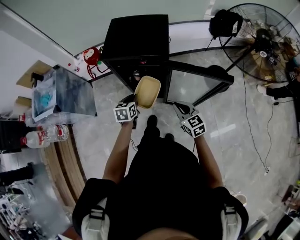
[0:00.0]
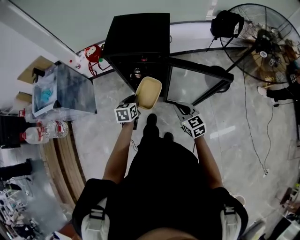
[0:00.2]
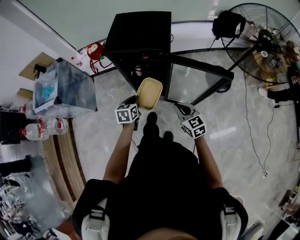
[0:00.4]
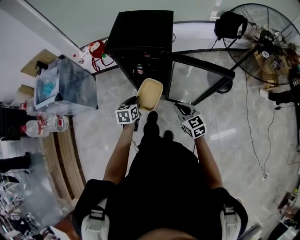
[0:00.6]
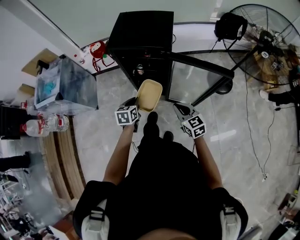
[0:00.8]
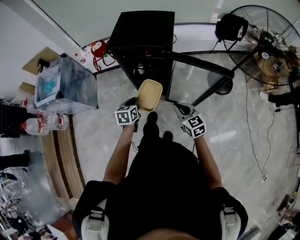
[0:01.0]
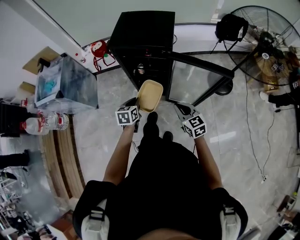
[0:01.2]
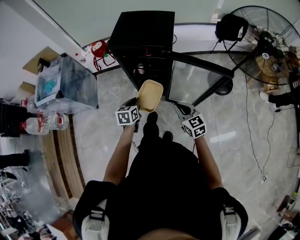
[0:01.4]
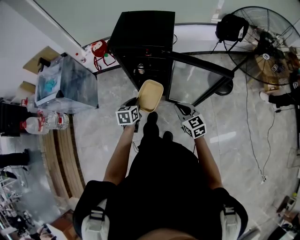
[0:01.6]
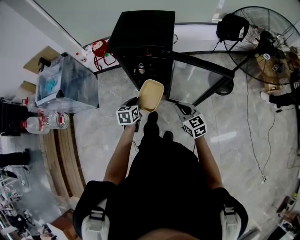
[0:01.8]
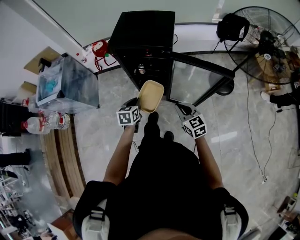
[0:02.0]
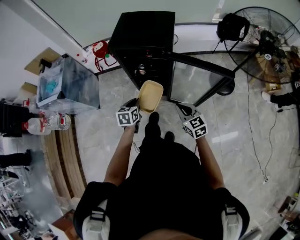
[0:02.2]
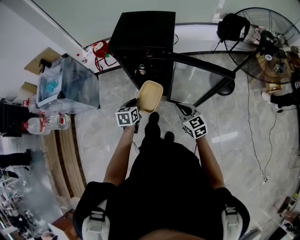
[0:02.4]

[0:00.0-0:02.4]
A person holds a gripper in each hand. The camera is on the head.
0:00.0 to 0:01.2: Both grippers travel together backward, about 10 cm.
0:01.2 to 0:02.4: Neither gripper changes place.

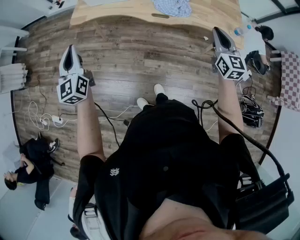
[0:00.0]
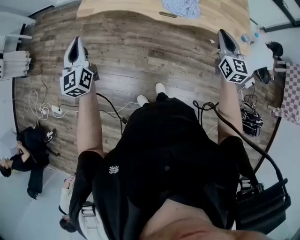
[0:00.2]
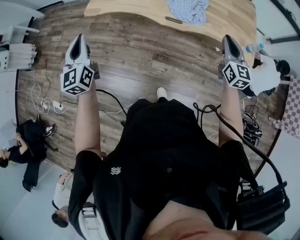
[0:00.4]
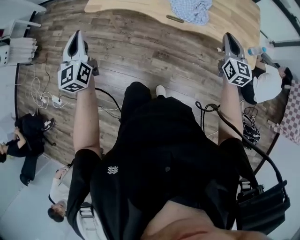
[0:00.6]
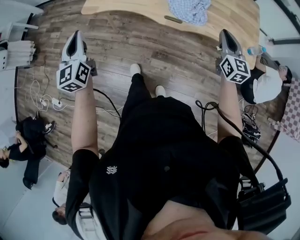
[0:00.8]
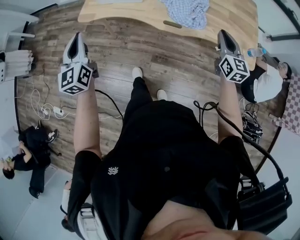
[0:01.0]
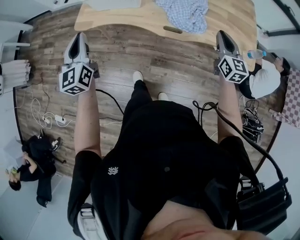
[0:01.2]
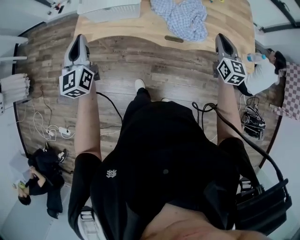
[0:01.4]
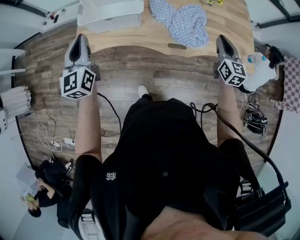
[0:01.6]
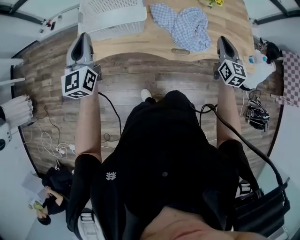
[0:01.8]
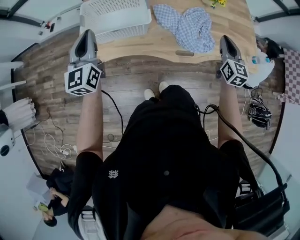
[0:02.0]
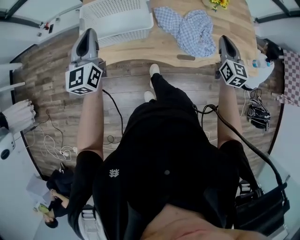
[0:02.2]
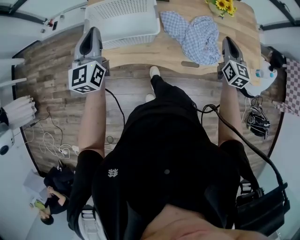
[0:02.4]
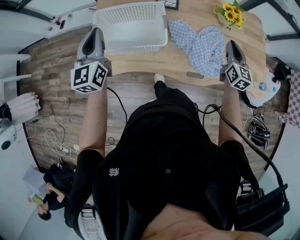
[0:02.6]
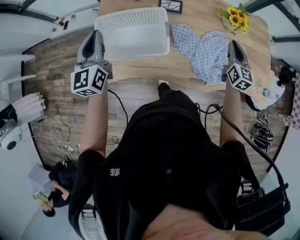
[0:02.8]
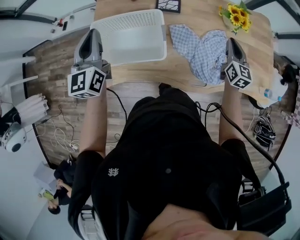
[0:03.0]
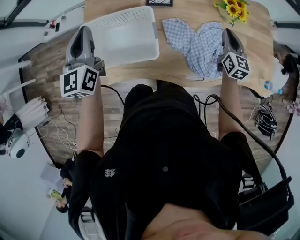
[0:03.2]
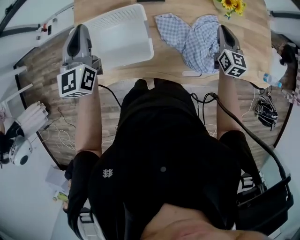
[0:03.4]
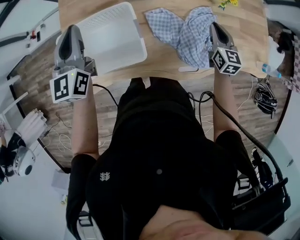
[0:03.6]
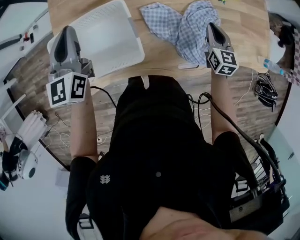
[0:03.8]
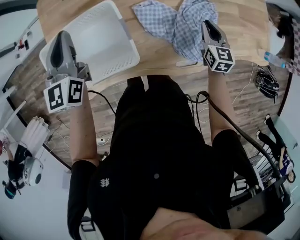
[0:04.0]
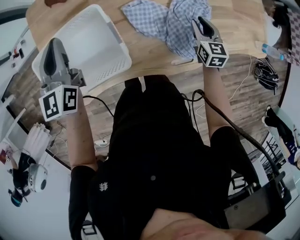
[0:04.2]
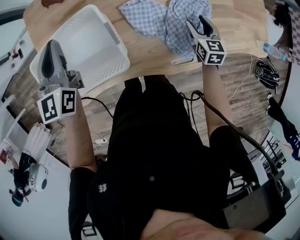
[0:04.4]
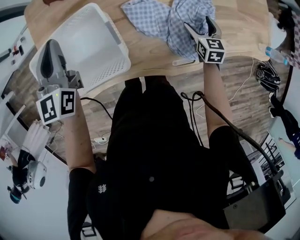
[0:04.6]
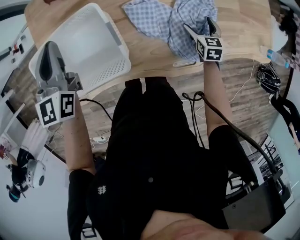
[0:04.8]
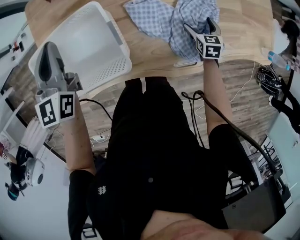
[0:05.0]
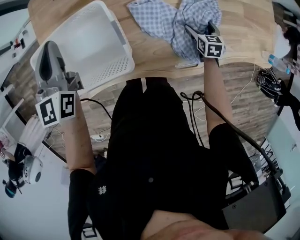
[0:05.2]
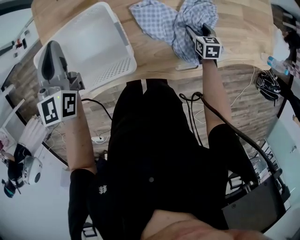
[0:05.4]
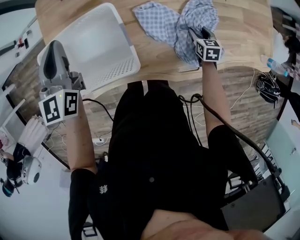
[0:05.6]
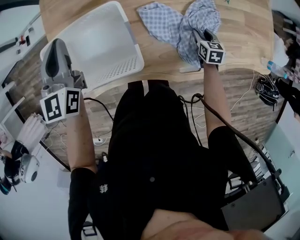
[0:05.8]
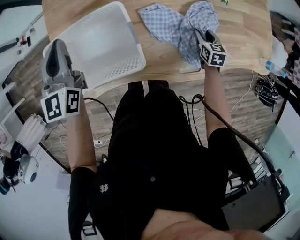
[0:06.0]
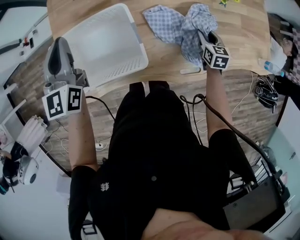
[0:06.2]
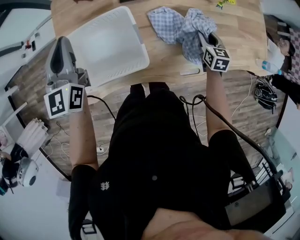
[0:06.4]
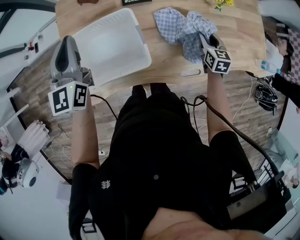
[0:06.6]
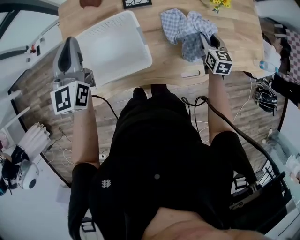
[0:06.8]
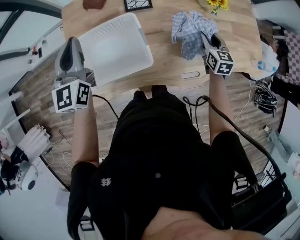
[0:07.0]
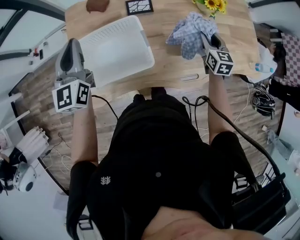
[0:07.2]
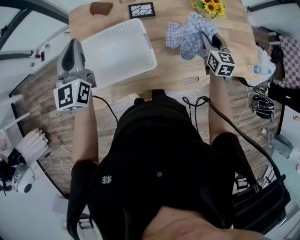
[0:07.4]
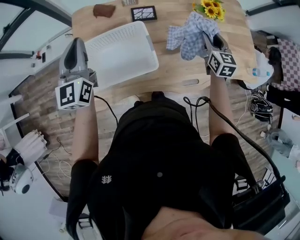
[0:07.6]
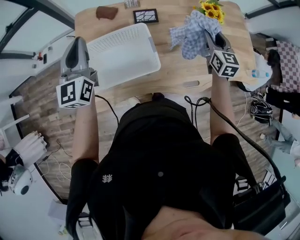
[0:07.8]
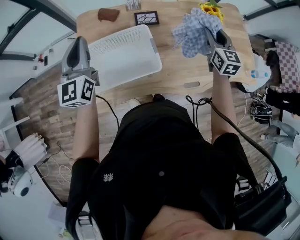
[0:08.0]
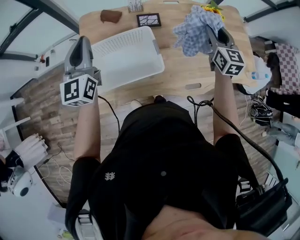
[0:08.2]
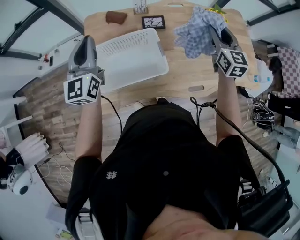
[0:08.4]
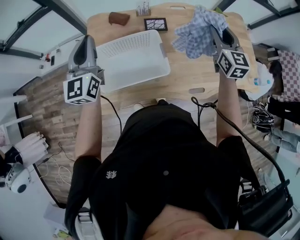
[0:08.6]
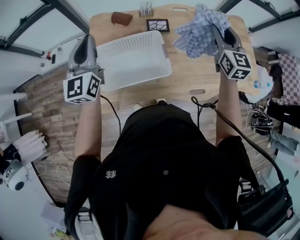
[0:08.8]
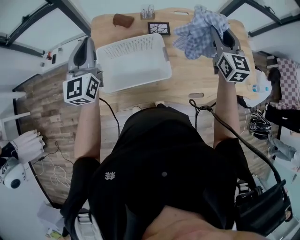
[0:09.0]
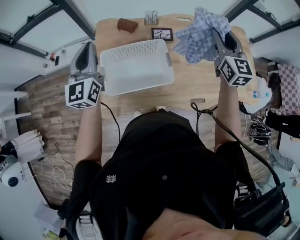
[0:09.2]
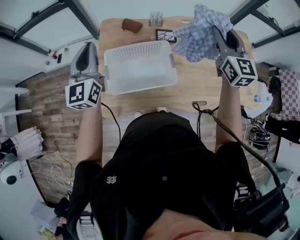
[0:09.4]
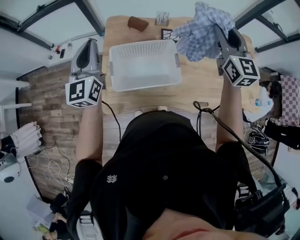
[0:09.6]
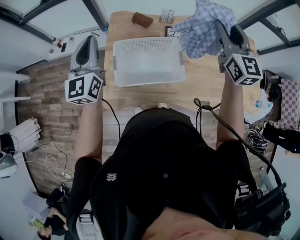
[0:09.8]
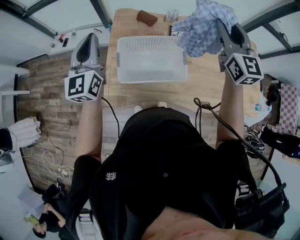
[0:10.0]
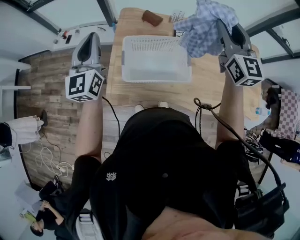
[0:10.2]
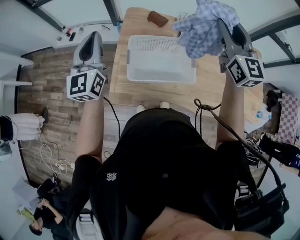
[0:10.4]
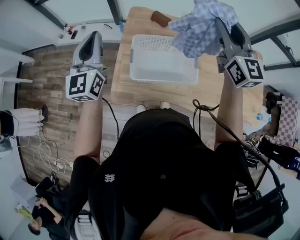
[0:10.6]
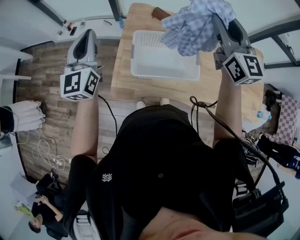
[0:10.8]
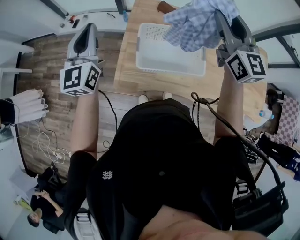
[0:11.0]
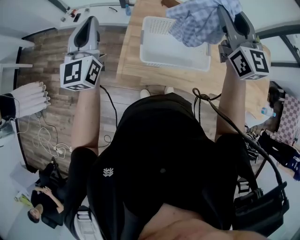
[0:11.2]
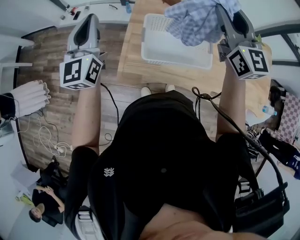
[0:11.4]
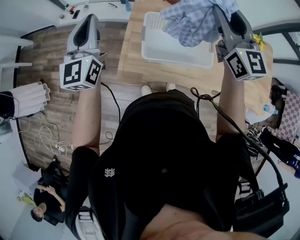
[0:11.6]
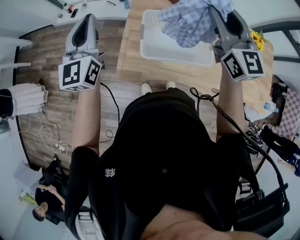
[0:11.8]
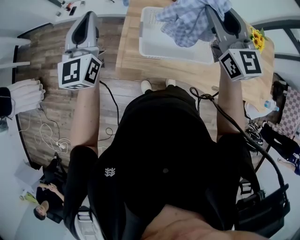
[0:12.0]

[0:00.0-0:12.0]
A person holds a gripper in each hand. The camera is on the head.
0:00.0 to 0:01.6: Both grippers move forward, approximately 30 cm.
0:01.6 to 0:03.0: Both grippers travel together forward, approximately 25 cm.
0:03.0 to 0:04.4: The left gripper heads downward, forward and to the right, covering roughly 20 cm. The right gripper heads downward, covering some 20 cm, rotates approximately 20 degrees, and opens up.
0:04.4 to 0:06.0: The left gripper changes place by roughly 5 cm; the right gripper opens and closes again.
0:06.0 to 0:07.6: The right gripper heads upward, covering approximately 25 cm, and changes its angle by some 30 degrees. The left gripper moves upward, approximately 10 cm.
0:07.6 to 0:09.0: The left gripper is displaced to the left by approximately 5 cm, while the right gripper shifts about 20 cm upward and to the left.
0:09.0 to 0:10.4: The left gripper is displaced to the left and backward by roughly 15 cm, while the right gripper travels to the left and upward by about 20 cm, and swivels some 20 degrees.
0:10.4 to 0:12.0: The left gripper heads to the left, covering about 5 cm; the right gripper is displaced to the left and downward by approximately 15 cm.

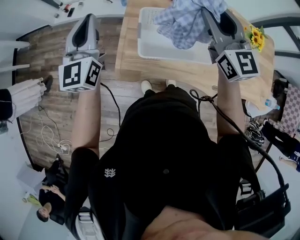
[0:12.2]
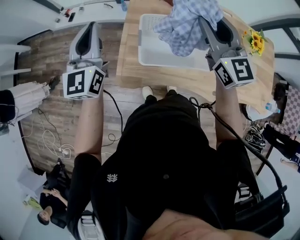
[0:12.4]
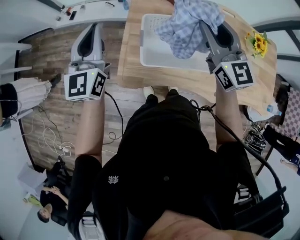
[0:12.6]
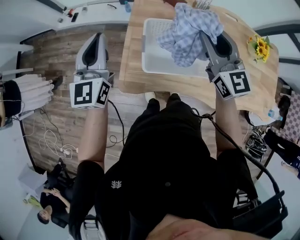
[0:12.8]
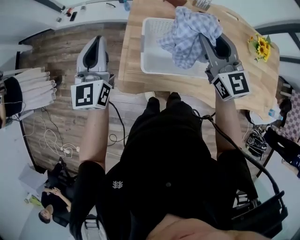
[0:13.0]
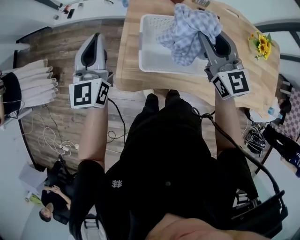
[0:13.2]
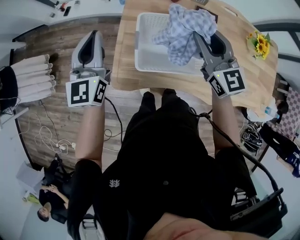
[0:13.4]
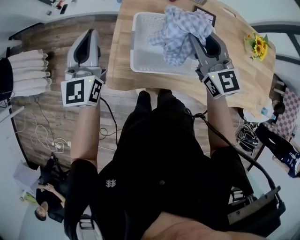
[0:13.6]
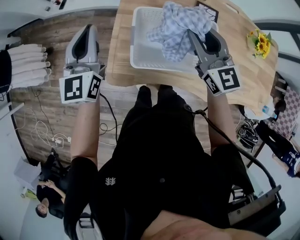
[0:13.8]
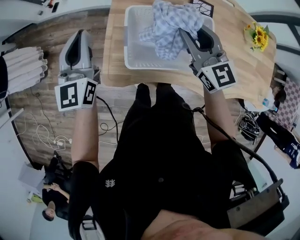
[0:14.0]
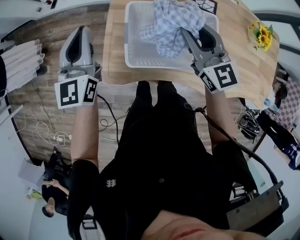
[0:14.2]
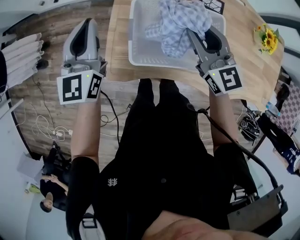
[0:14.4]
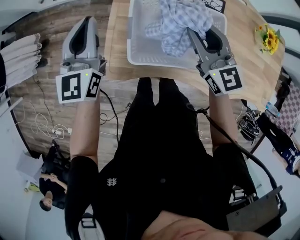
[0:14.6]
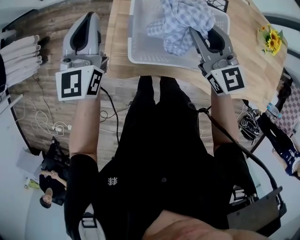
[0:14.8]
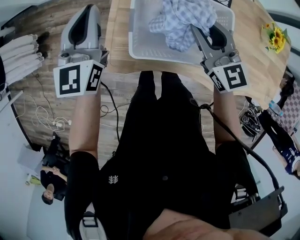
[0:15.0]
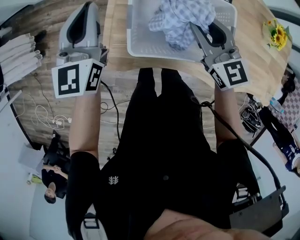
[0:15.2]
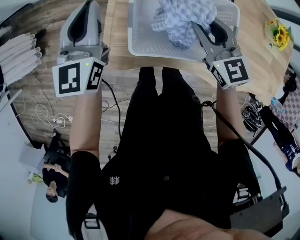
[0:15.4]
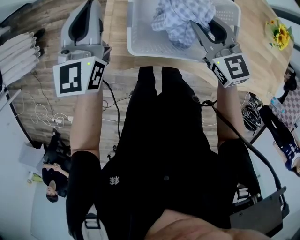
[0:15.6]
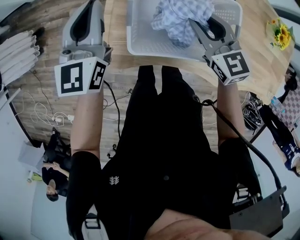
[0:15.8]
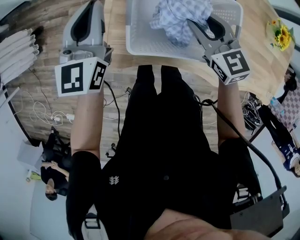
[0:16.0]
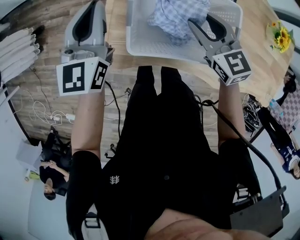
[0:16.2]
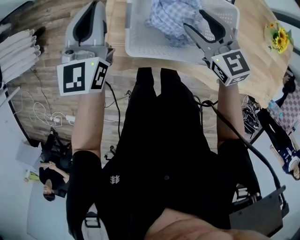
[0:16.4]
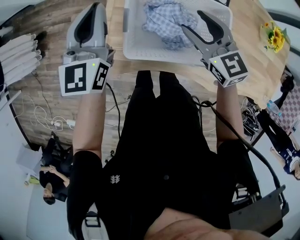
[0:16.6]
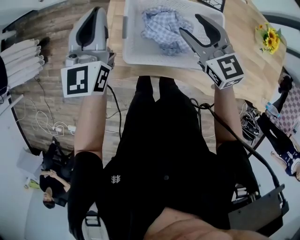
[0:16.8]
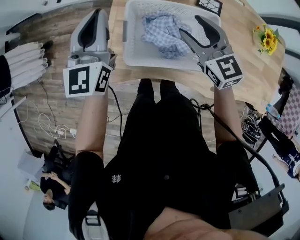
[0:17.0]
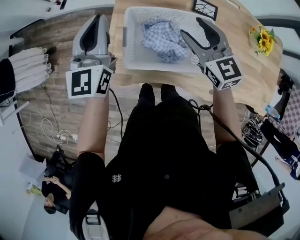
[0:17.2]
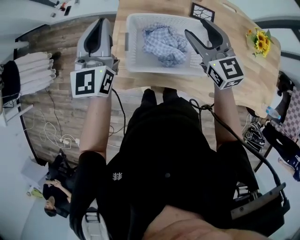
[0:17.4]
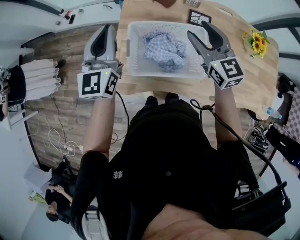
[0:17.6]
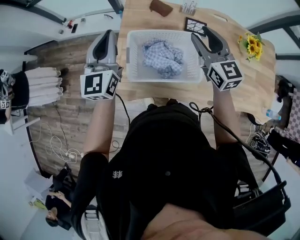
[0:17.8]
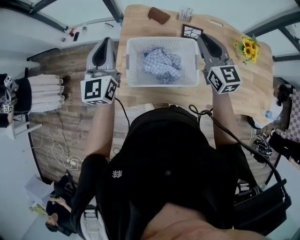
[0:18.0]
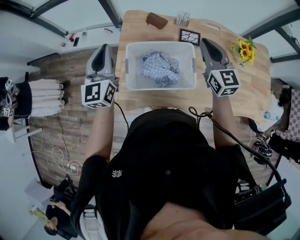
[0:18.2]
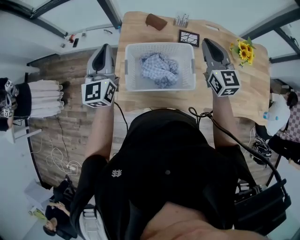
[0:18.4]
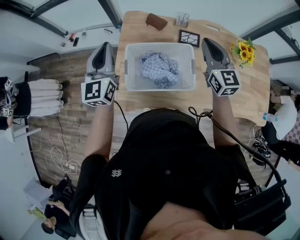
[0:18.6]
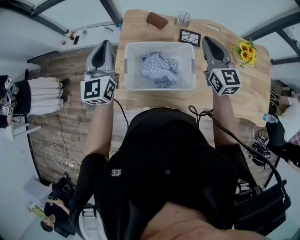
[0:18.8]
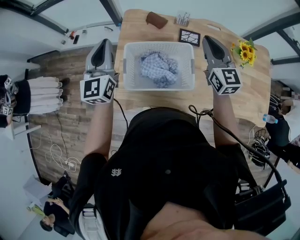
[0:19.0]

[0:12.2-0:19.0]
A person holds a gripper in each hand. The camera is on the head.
0:12.2 to 0:13.6: The left gripper is displaced downward by approximately 5 cm. The right gripper is displaced downward by roughly 10 cm.
0:13.6 to 0:15.0: The right gripper heads downward, covering about 10 cm. Meanwhile the left gripper moves about 5 cm.
0:15.0 to 0:16.2: The right gripper goes roughly 5 cm downward.
0:16.2 to 0:17.6: The grippers both shift upward and to the right by approximately 15 cm. The right gripper rotates some 20 degrees.
0:17.6 to 0:19.0: The right gripper moves to the right, approximately 10 cm, and closes.

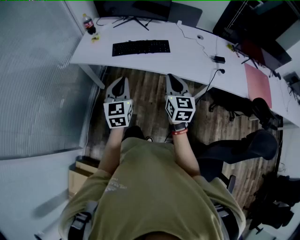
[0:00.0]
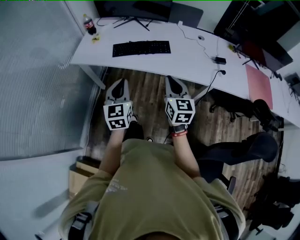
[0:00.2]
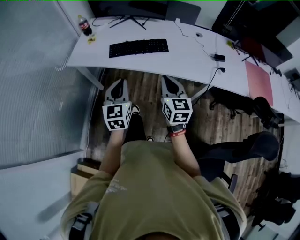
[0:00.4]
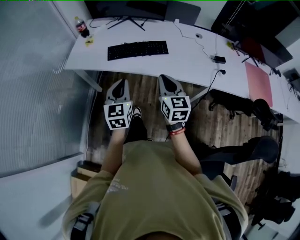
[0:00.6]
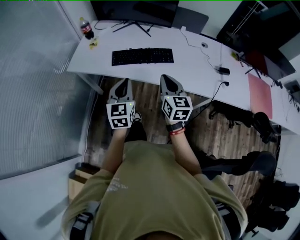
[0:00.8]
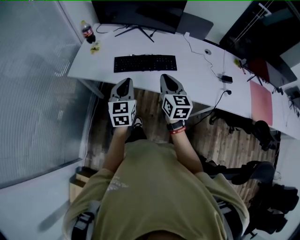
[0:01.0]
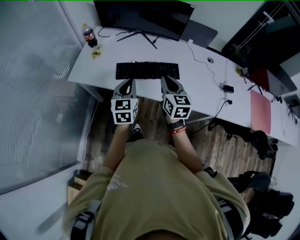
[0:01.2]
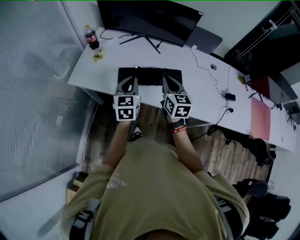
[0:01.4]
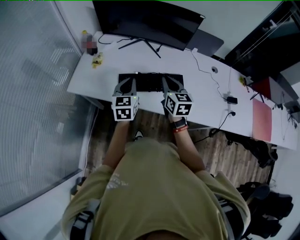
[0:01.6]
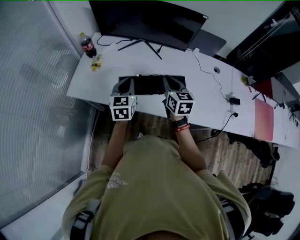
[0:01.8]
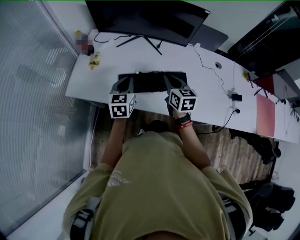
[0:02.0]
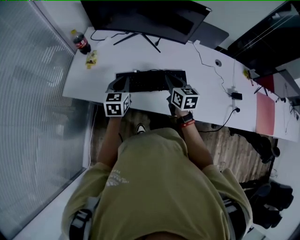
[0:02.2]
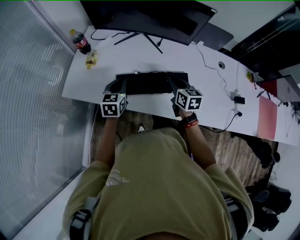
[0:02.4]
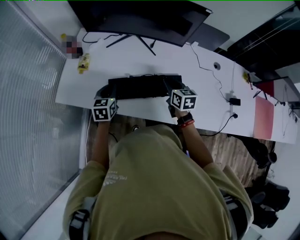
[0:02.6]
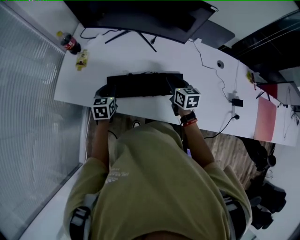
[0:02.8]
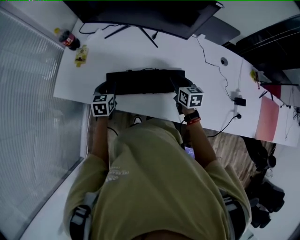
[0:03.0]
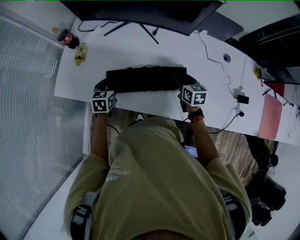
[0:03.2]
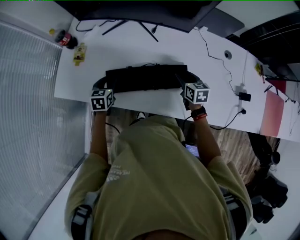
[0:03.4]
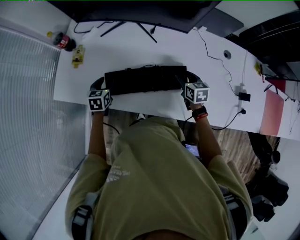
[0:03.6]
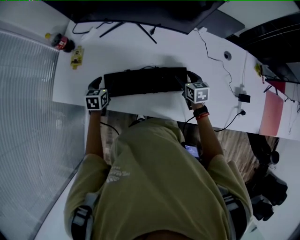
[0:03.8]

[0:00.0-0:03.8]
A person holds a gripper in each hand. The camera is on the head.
0:00.0 to 0:01.2: Both grippers move forward, some 25 cm.
0:01.2 to 0:02.6: The left gripper goes roughly 25 cm forward, downward and to the left, and turns by approximately 20 degrees, while the right gripper travels forward and downward by approximately 25 cm, and rotates about 20 degrees.
0:02.6 to 0:03.8: The right gripper heads downward and to the right, covering approximately 15 cm, and opens up. Meanwhile the left gripper shifts roughly 10 cm downward and forward, and opens.
